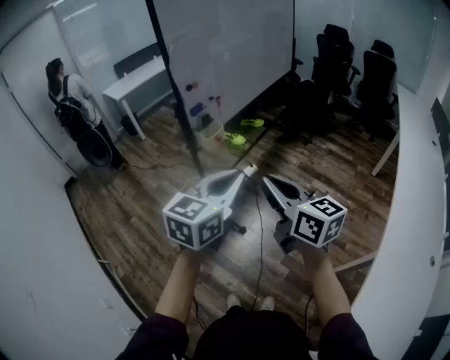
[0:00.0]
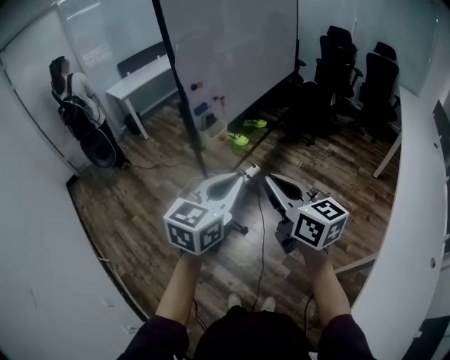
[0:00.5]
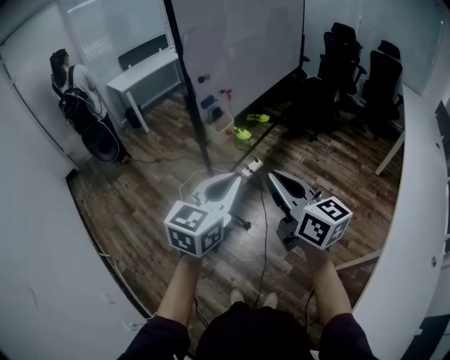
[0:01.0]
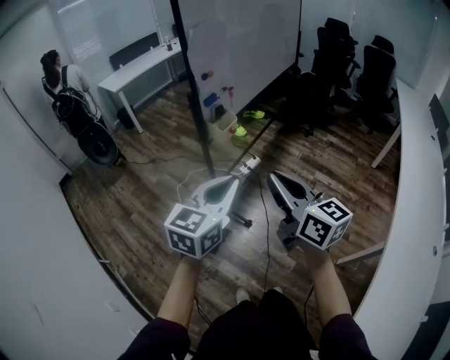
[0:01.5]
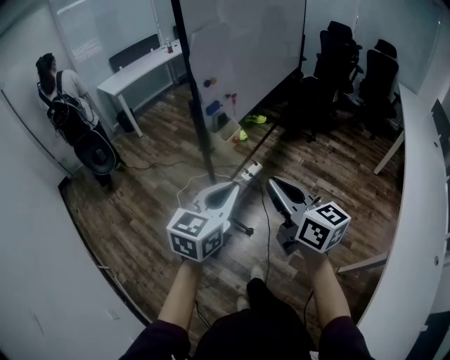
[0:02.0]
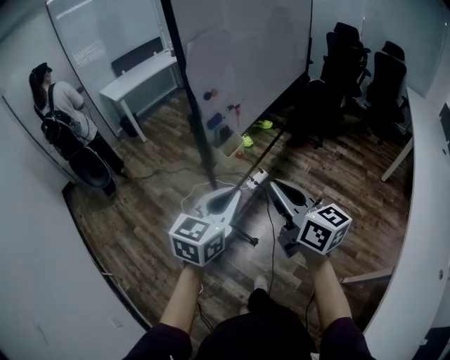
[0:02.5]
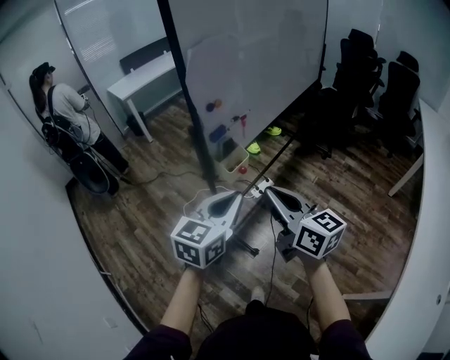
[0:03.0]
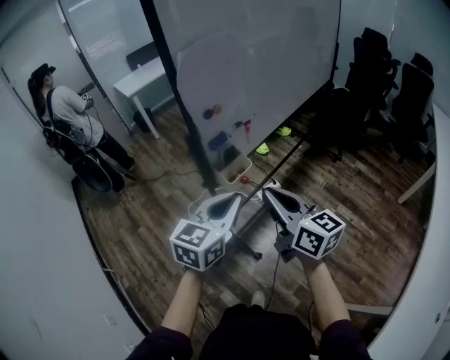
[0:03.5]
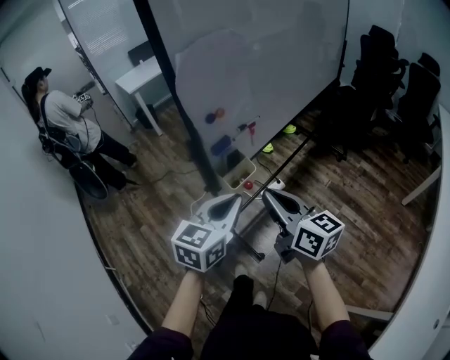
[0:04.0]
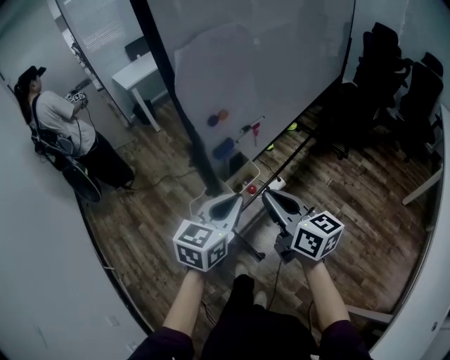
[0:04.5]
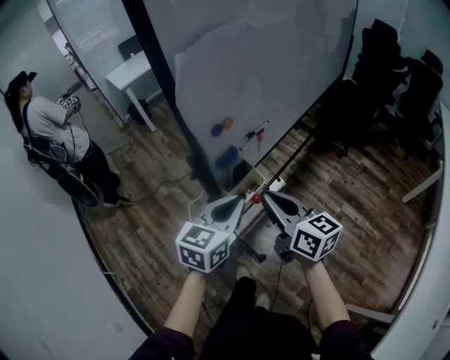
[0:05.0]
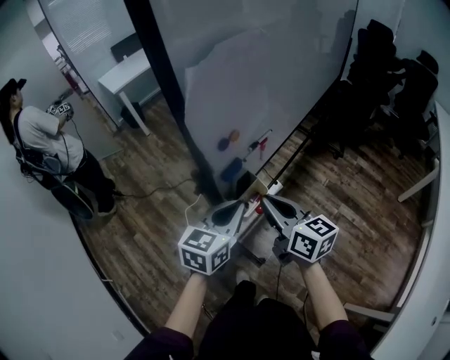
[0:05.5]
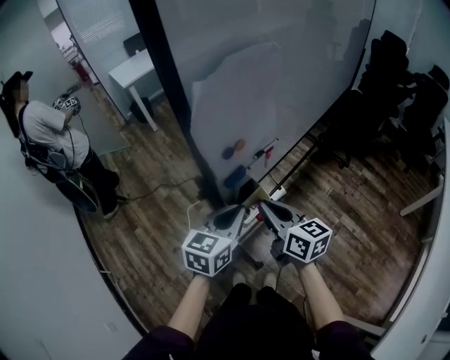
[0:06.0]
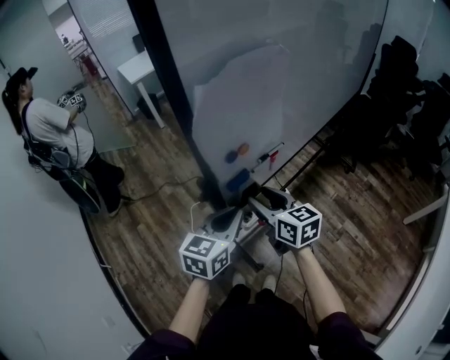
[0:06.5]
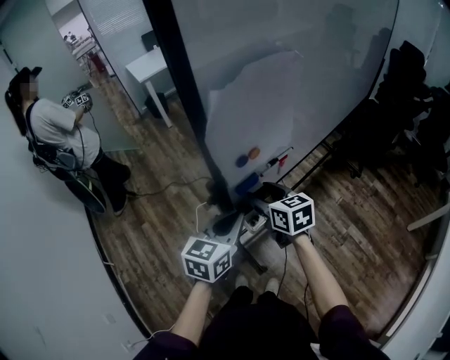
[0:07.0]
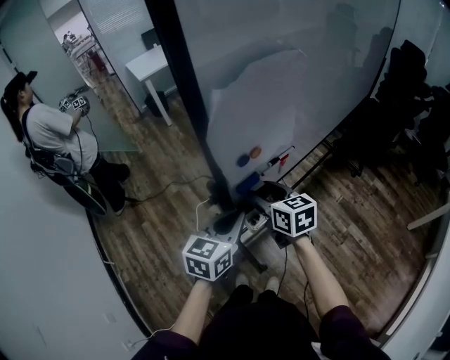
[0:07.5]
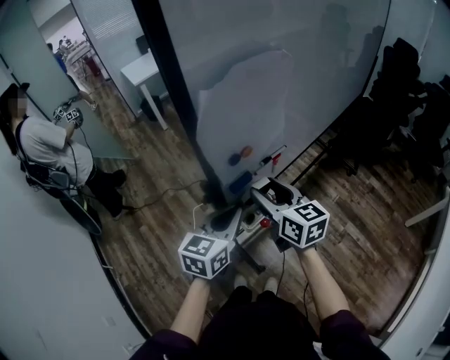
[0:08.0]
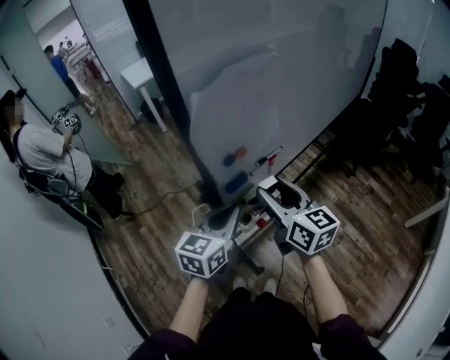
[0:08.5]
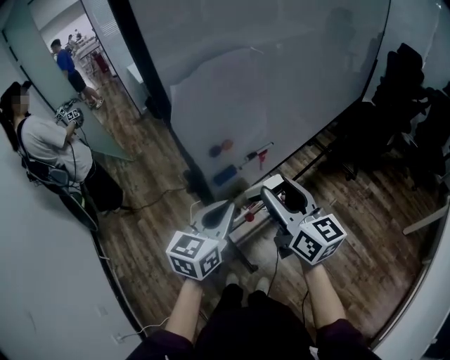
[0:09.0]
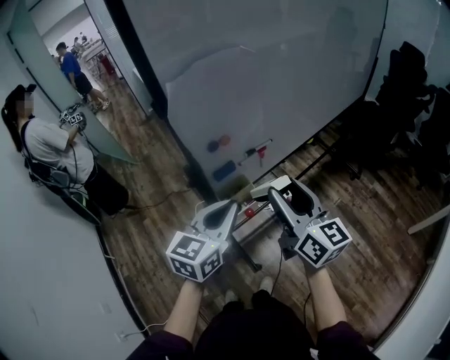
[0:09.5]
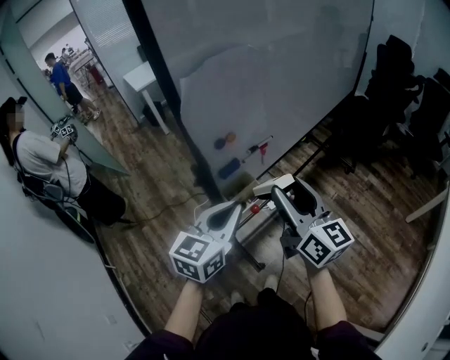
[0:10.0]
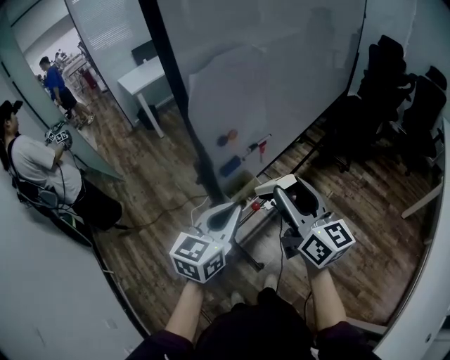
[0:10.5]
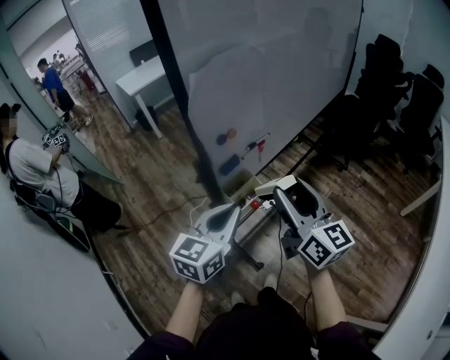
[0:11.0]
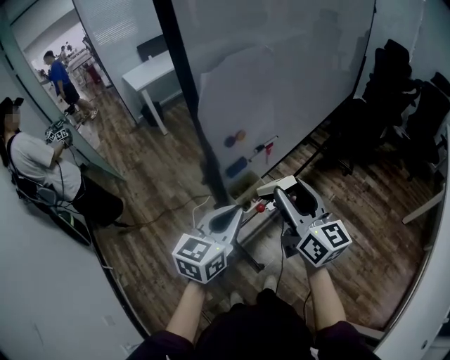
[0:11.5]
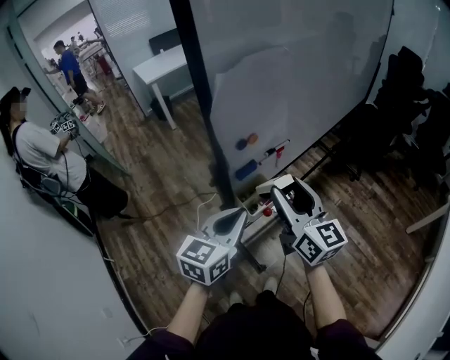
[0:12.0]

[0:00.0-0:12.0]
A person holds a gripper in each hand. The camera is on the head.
0:00.0 to 0:02.0: The right gripper is displaced to the left and forward by some 10 cm. The left gripper travels to the left, downward and forward by approximately 15 cm.
0:02.0 to 0:04.0: Both grippers move forward, some 25 cm.
0:04.0 to 0:06.0: Both grippers travel together forward and downward, roughly 15 cm.
0:06.0 to 0:08.0: The right gripper travels forward by approximately 5 cm, and opens up.
0:08.0 to 0:10.0: The left gripper heads backward and upward, covering about 10 cm; the right gripper shifts roughly 15 cm backward, upward and to the right, and rotates approximately 20 degrees.
0:10.0 to 0:12.0: The right gripper changes place by roughly 5 cm.

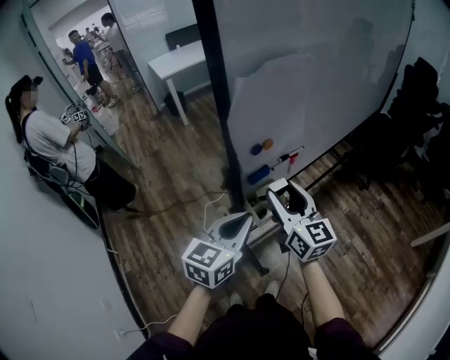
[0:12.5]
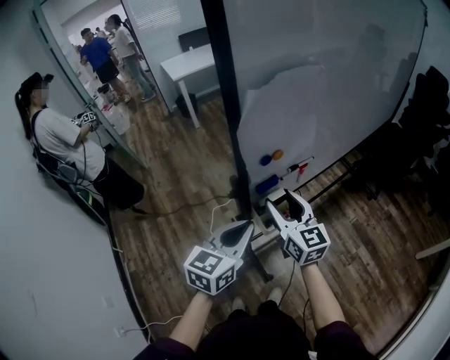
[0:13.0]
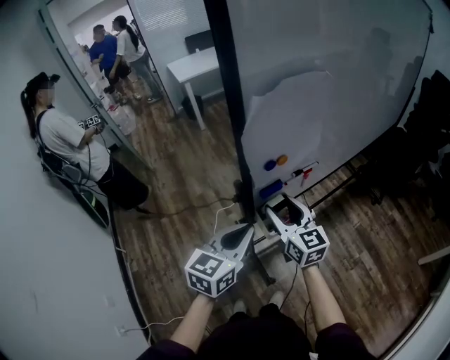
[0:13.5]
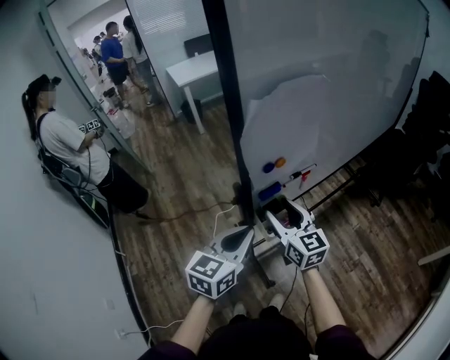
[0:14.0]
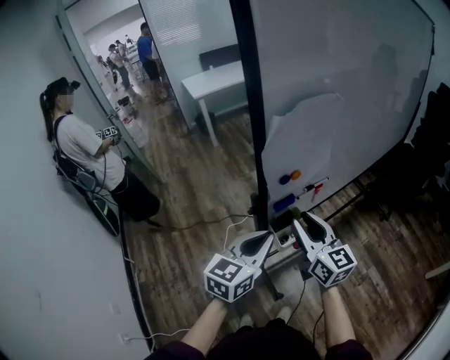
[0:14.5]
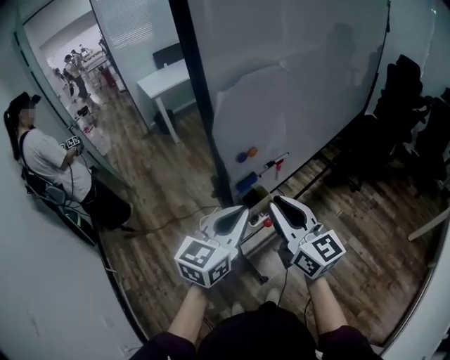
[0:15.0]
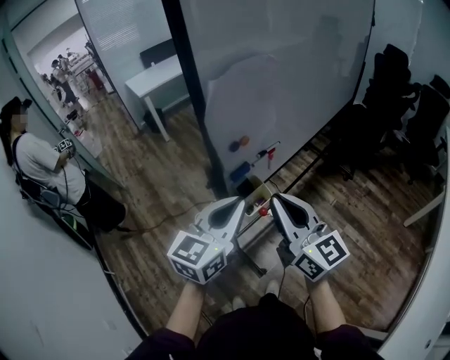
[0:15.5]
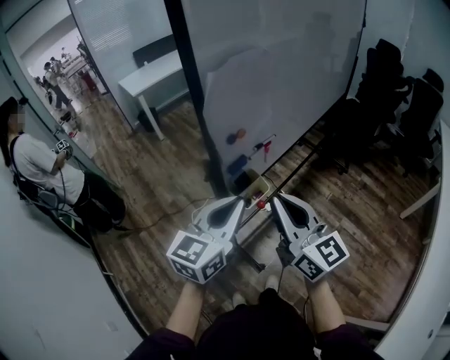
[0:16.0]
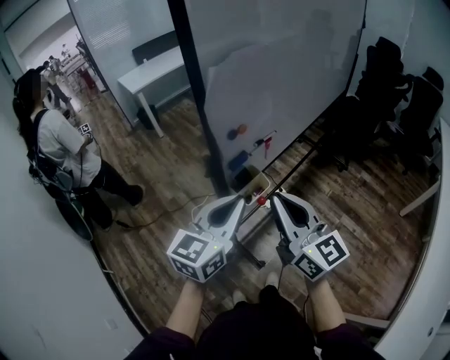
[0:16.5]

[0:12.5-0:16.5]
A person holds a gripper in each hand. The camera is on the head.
0:12.5 to 0:14.5: The right gripper closes.
0:14.5 to 0:16.5: The right gripper shifts some 15 cm backward and upward, and closes its fingers. The left gripper shifts some 10 cm backward and upward.

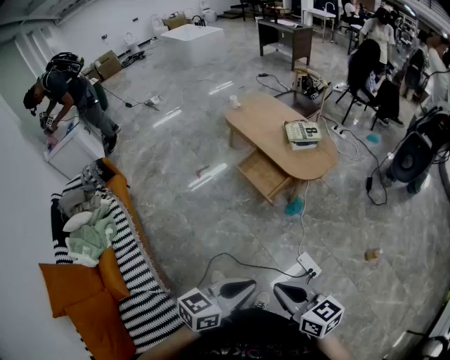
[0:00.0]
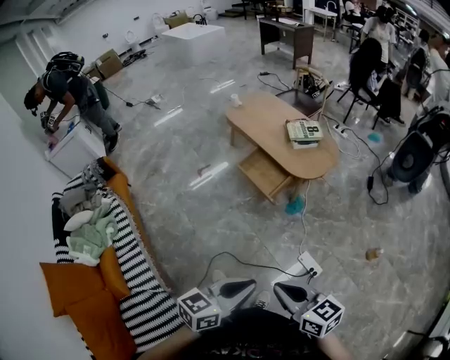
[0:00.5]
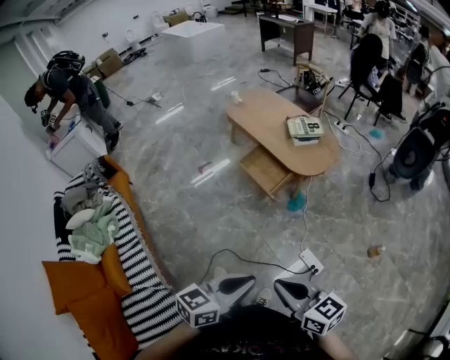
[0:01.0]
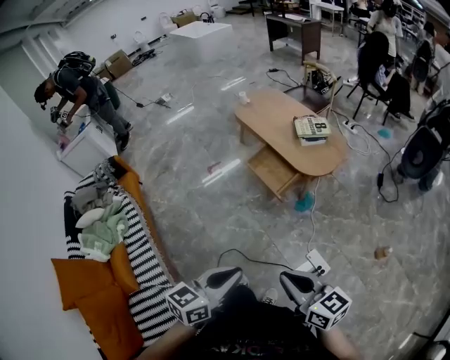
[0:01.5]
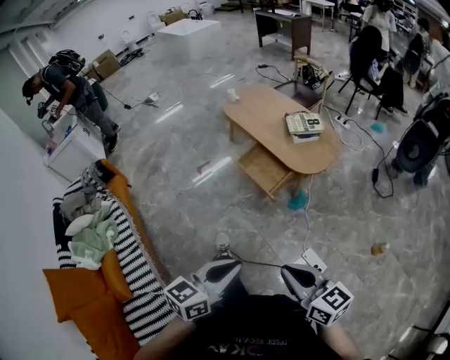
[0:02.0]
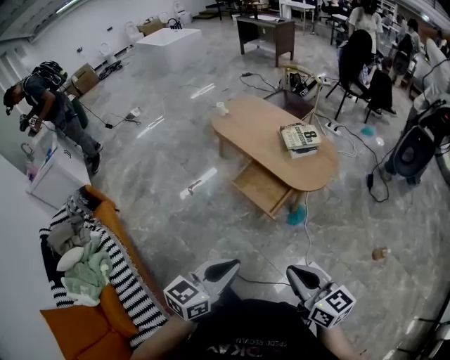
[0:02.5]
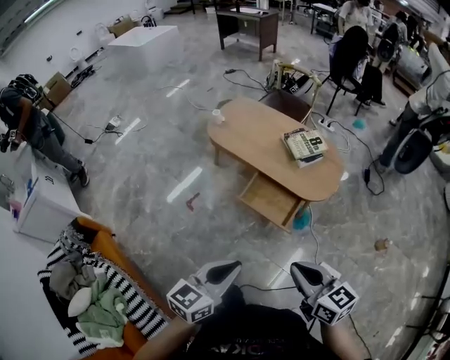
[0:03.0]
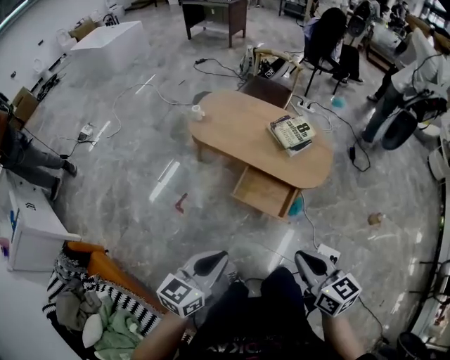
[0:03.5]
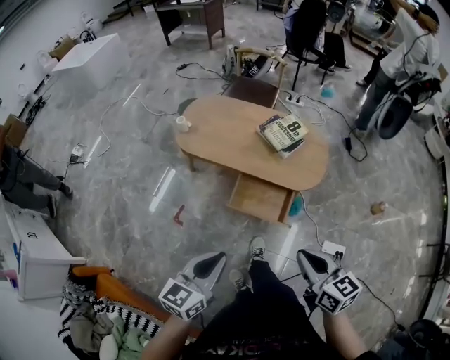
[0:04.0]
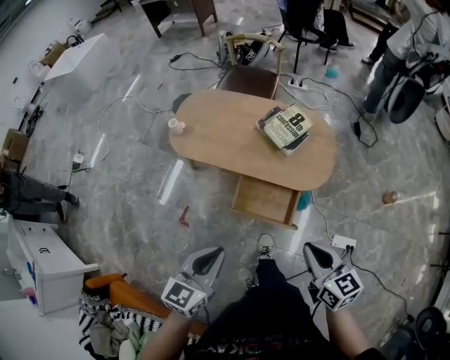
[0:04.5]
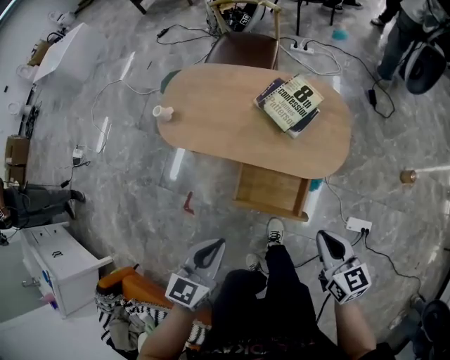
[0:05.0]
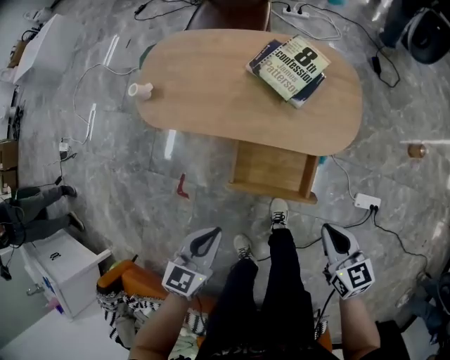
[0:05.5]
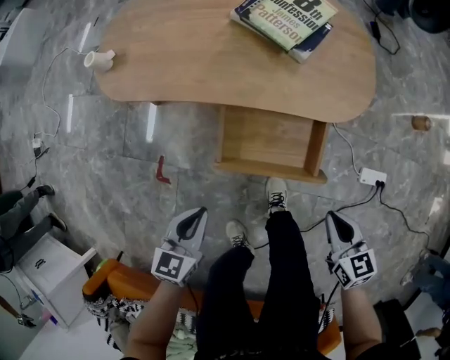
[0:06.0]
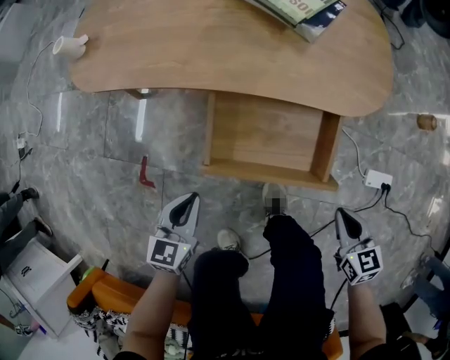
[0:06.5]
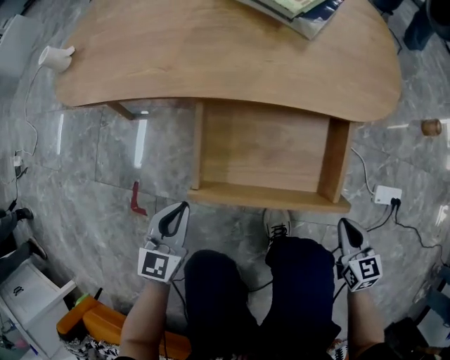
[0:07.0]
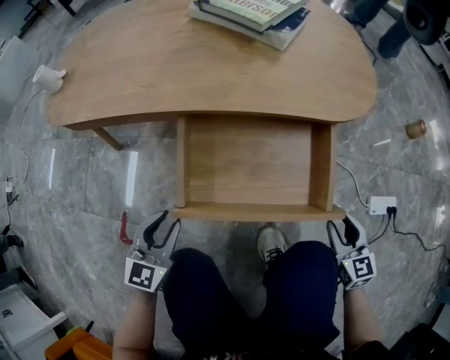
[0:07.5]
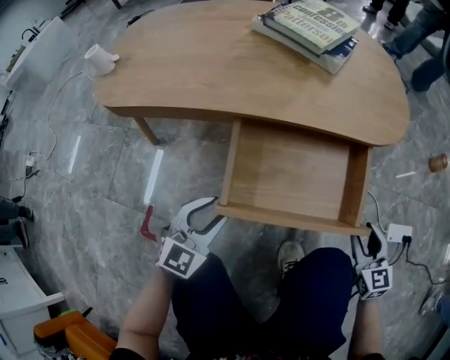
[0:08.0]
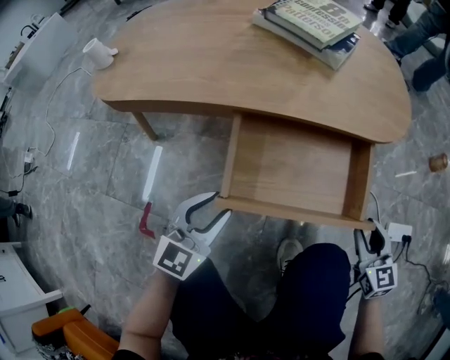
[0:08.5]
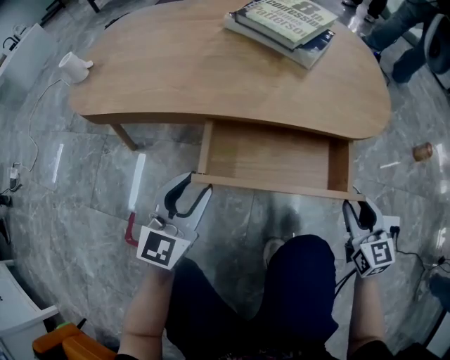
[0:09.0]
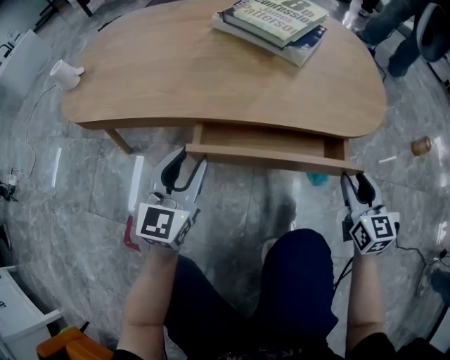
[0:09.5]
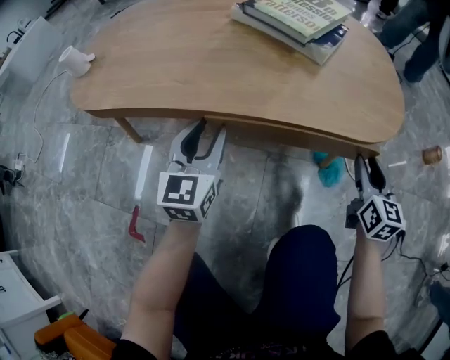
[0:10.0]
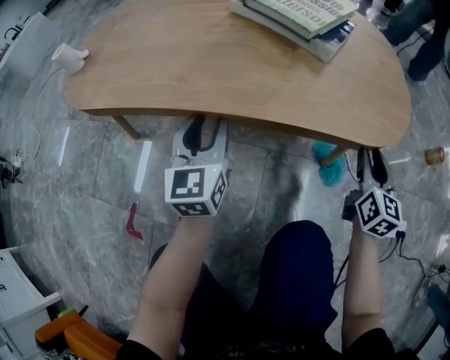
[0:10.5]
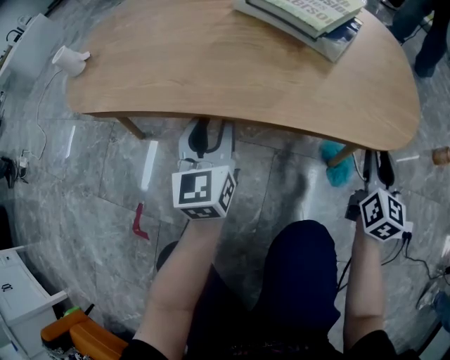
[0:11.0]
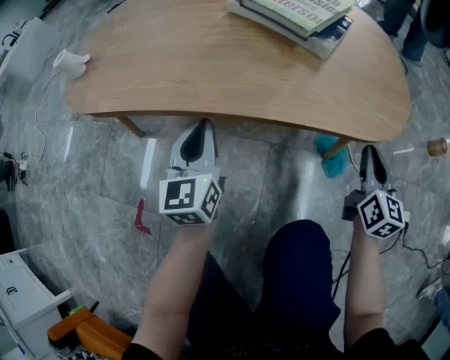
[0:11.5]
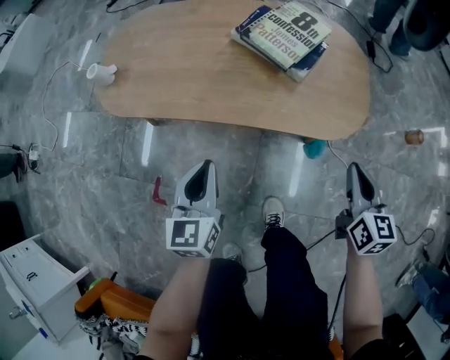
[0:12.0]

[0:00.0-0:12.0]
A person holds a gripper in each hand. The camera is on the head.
0:00.0 to 0:02.0: Both grippers travel together forward, roughly 10 cm.
0:02.0 to 0:04.0: The pair of grippers is taken roughly 50 cm. The right gripper swivels roughly 40 degrees; the left gripper rotates about 20 degrees.
0:04.0 to 0:06.0: The left gripper travels downward and forward by about 40 cm, and rotates some 20 degrees, while the right gripper moves downward, some 40 cm, and changes its angle by some 20 degrees.
0:06.0 to 0:08.0: Both grippers travel together downward, approximately 25 cm. The left gripper turns by approximately 40 degrees, and opens its fingers. The right gripper rotates approximately 30 degrees, and opens its fingers.
0:08.0 to 0:10.0: Both grippers move forward, roughly 20 cm. The left gripper changes its angle by approximately 30 degrees.
0:10.0 to 0:12.0: The left gripper heads upward and backward, covering roughly 20 cm, and closes up, while the right gripper shifts approximately 25 cm upward, and closes up.
